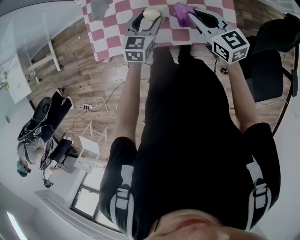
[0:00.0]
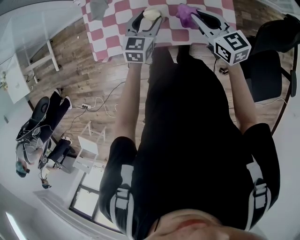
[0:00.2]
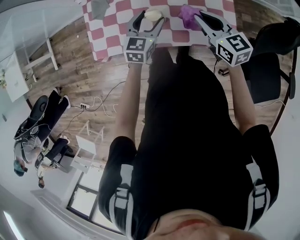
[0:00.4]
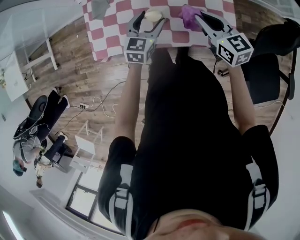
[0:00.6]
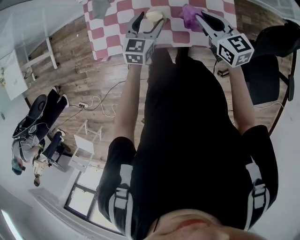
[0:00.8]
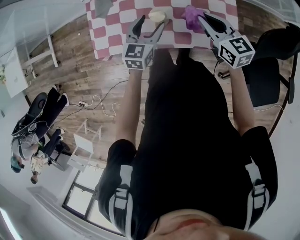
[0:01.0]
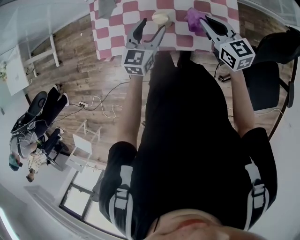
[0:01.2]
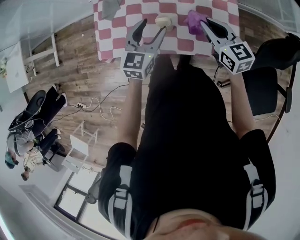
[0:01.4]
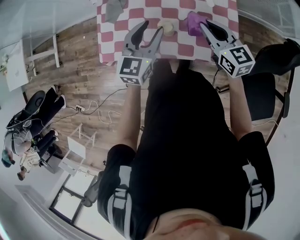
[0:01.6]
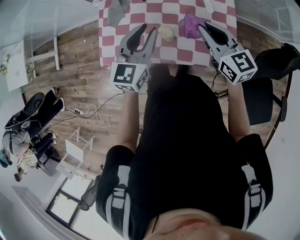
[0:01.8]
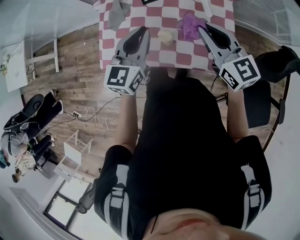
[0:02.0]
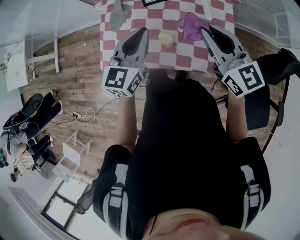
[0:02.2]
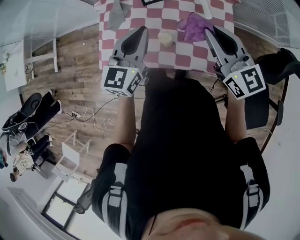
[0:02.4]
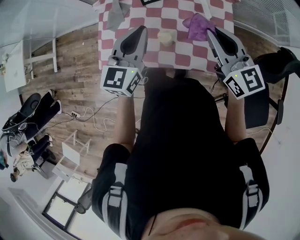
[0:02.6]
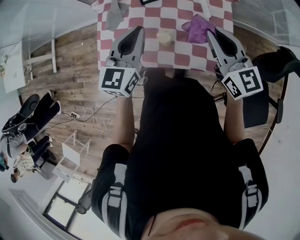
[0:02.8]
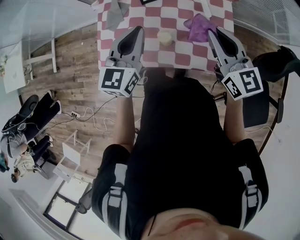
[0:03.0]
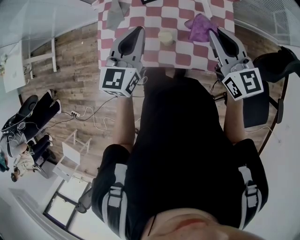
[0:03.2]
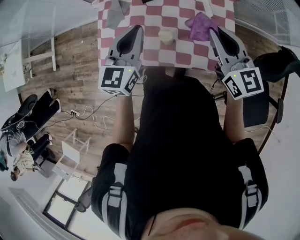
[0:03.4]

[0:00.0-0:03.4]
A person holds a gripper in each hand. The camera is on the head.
0.0 to 1.6 s: The left gripper heads upward, covering some 10 cm.
1.6 to 3.4 s: Both grippers travel together upward, roughly 10 cm. The left gripper closes.

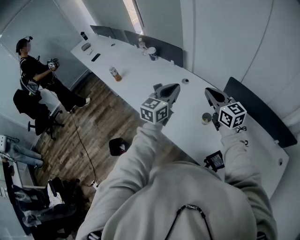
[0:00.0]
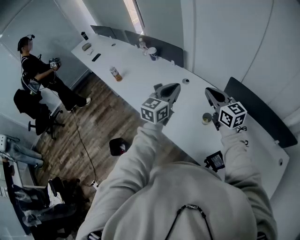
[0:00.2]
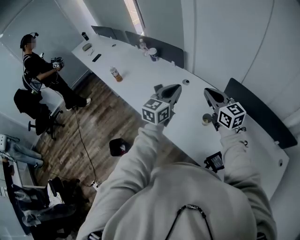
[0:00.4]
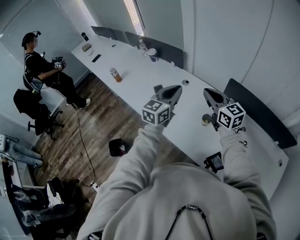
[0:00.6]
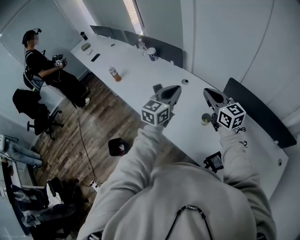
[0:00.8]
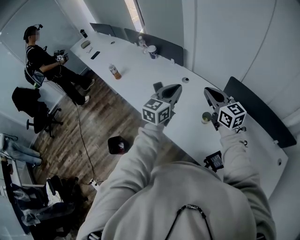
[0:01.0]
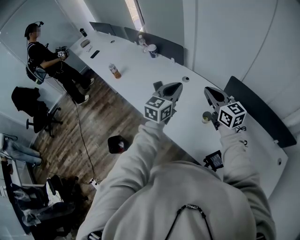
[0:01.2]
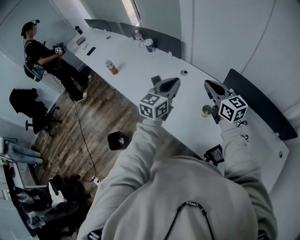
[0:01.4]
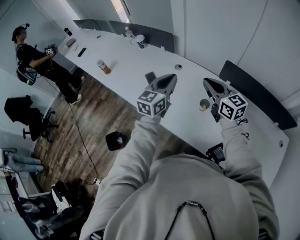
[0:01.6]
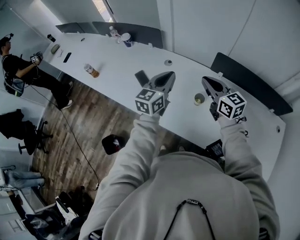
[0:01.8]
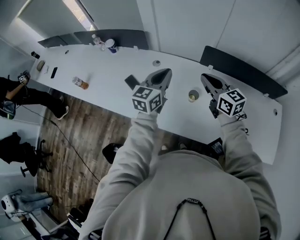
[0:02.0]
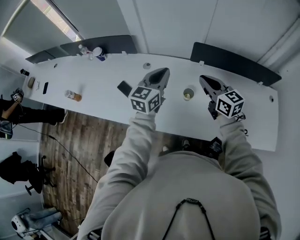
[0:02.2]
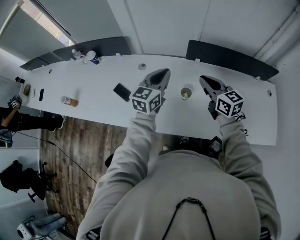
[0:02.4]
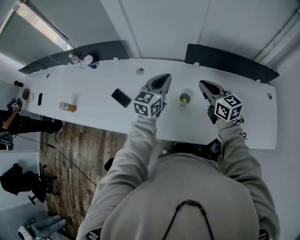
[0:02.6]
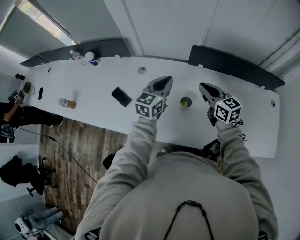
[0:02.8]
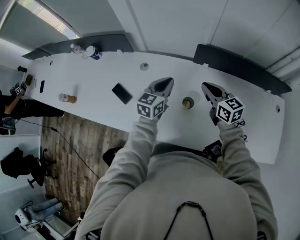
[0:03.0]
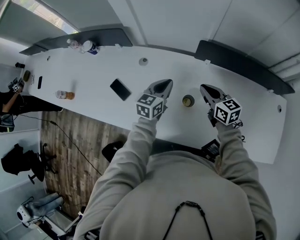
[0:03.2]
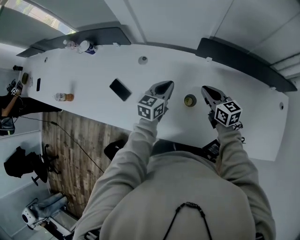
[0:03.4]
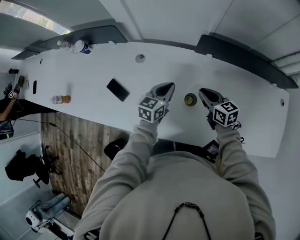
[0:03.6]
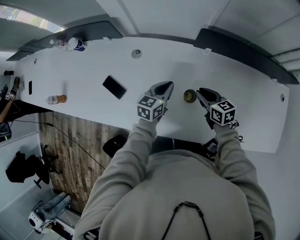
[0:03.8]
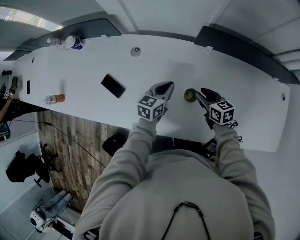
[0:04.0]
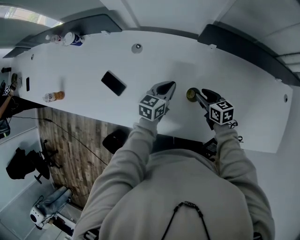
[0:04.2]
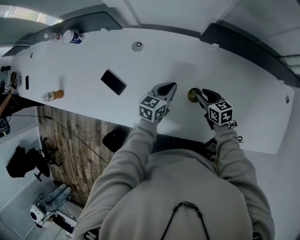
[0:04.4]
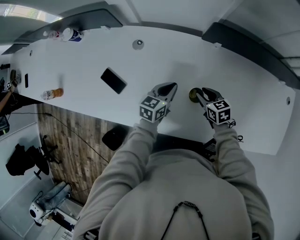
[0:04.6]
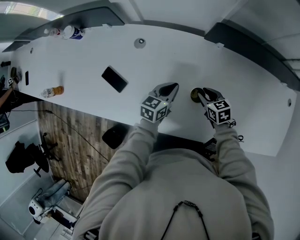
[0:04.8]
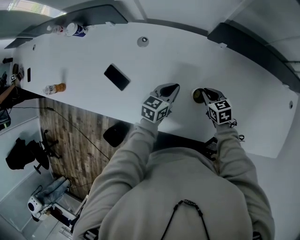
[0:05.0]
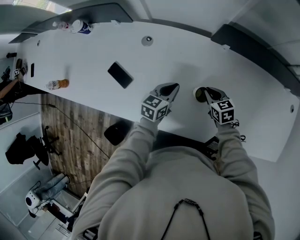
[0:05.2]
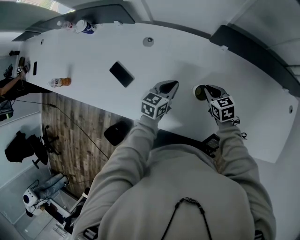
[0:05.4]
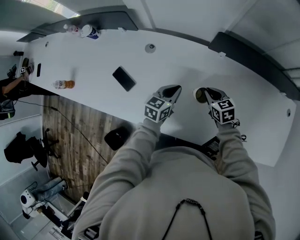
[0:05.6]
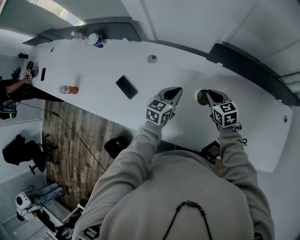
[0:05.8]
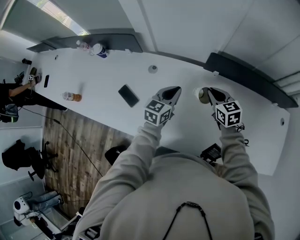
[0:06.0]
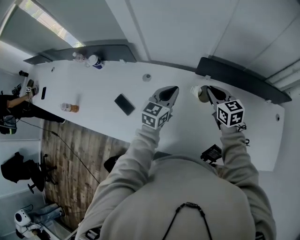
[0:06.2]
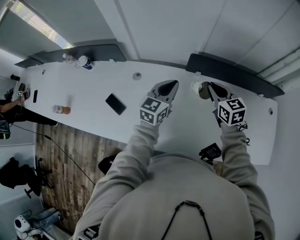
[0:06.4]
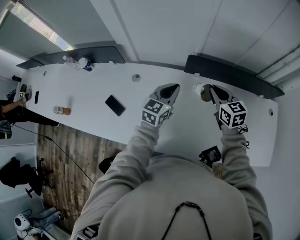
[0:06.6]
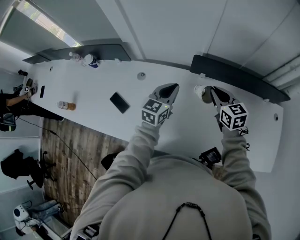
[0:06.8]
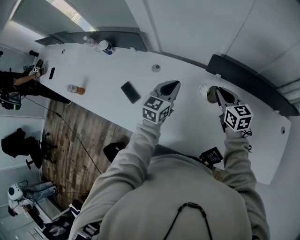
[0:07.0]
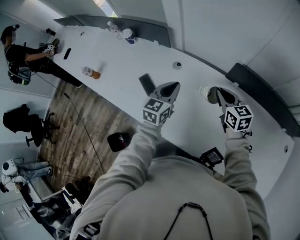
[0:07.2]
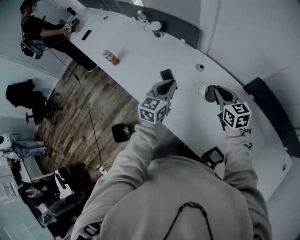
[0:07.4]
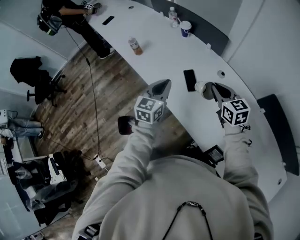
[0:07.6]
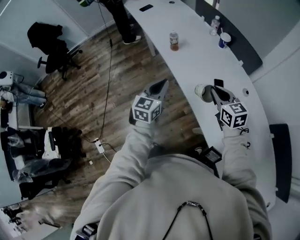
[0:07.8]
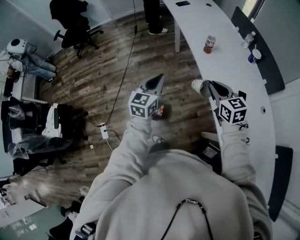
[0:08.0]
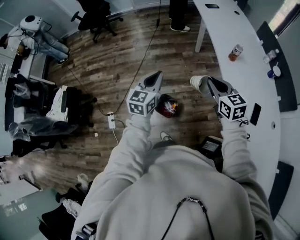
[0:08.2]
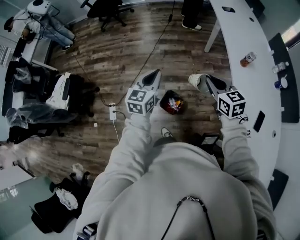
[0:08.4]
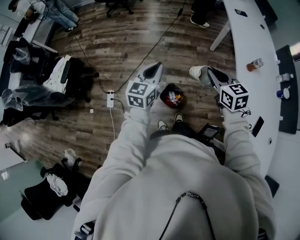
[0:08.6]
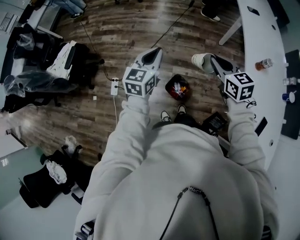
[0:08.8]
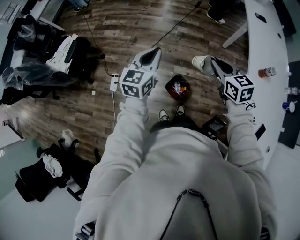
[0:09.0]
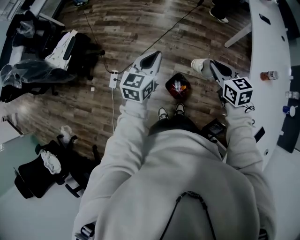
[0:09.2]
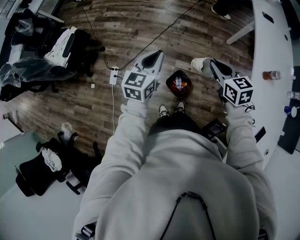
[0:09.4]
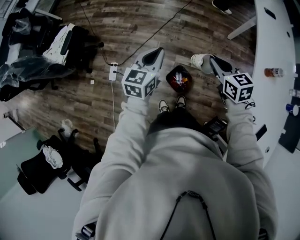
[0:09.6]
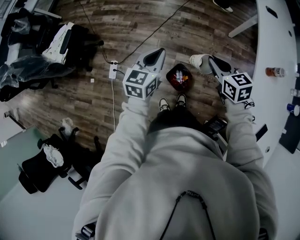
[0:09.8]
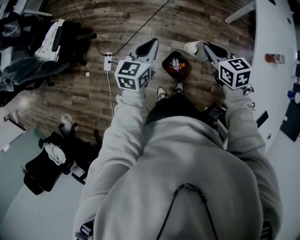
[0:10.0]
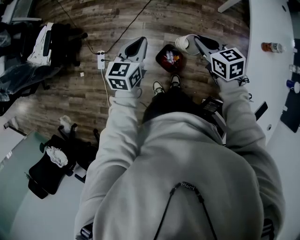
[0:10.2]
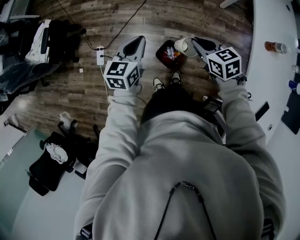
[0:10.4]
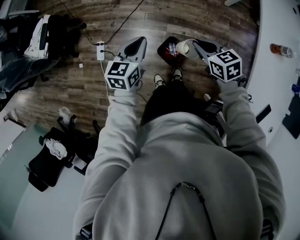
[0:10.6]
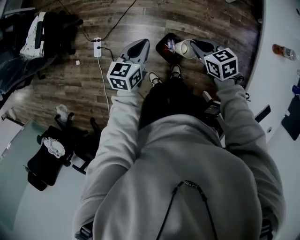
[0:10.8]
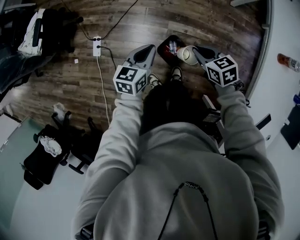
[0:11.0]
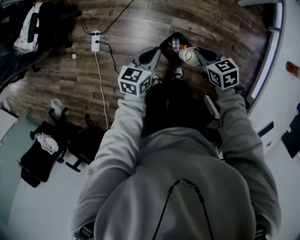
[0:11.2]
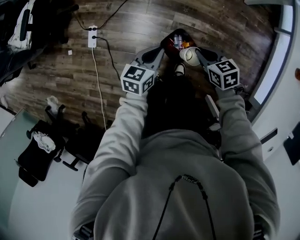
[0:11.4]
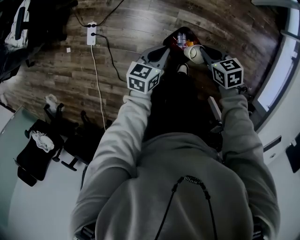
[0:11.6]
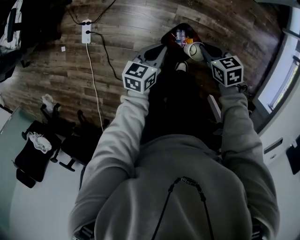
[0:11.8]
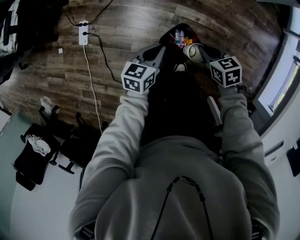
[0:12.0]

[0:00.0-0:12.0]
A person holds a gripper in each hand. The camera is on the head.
0.0 to 1.6 s: The grippers stay close to where they were, moving slightly.
1.6 to 3.0 s: The right gripper heads downward, to the right and forward, covering roughly 20 cm, and rotates some 20 degrees. The left gripper travels forward, downward and to the right by some 20 cm, and rotates approximately 20 degrees.
3.0 to 4.4 s: The two grippers go roughly 20 cm downward. The right gripper turns by some 30 degrees, and opens its fingers.
4.4 to 6.0 s: The left gripper travels upward by about 15 cm. The right gripper heads upward and forward, covering approximately 20 cm, turns by about 20 degrees, and closes its fingers.
6.0 to 7.6 s: The left gripper shifts by roughly 40 cm, and turns by approximately 40 degrees. The right gripper goes up and down, approximately 10 cm each way, reversing 2 times, and rotates approximately 30 degrees.
7.6 to 9.0 s: Both grippers are carried some 70 cm. The right gripper rotates roughly 60 degrees; the left gripper changes its angle by about 60 degrees.
9.0 to 10.4 s: The grippers both shift downward by about 15 cm.
10.4 to 12.0 s: Both grippers move downward, some 40 cm.

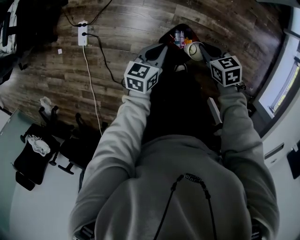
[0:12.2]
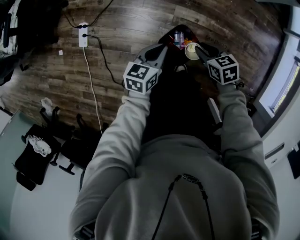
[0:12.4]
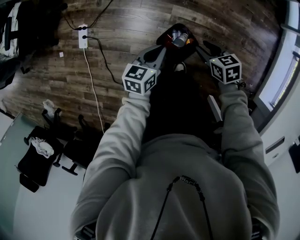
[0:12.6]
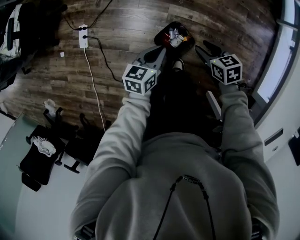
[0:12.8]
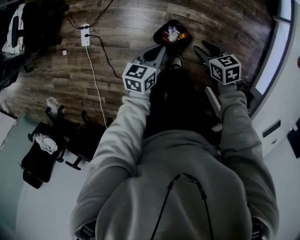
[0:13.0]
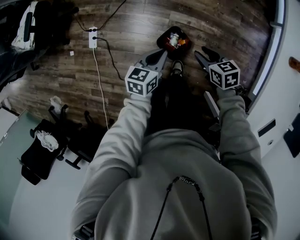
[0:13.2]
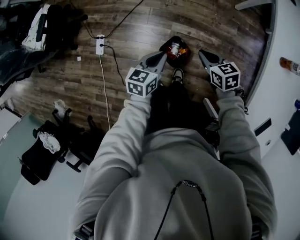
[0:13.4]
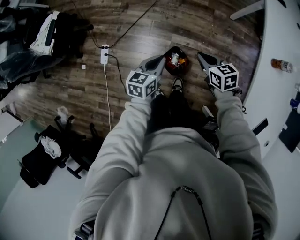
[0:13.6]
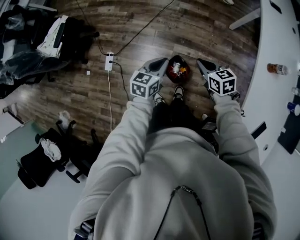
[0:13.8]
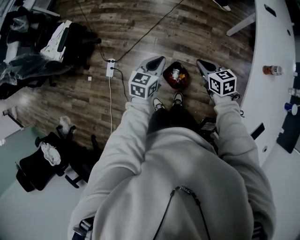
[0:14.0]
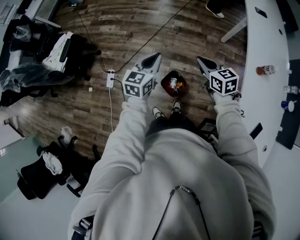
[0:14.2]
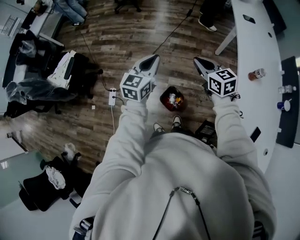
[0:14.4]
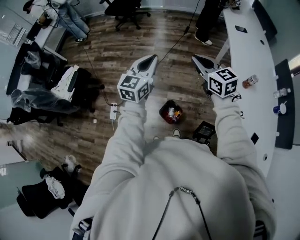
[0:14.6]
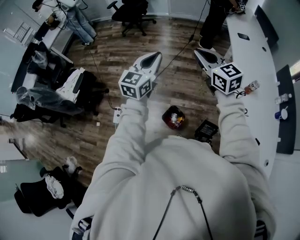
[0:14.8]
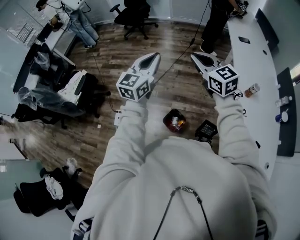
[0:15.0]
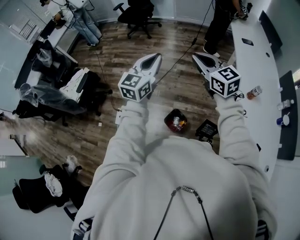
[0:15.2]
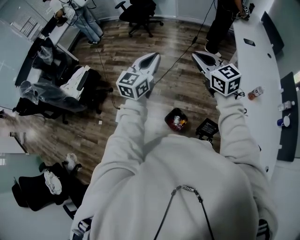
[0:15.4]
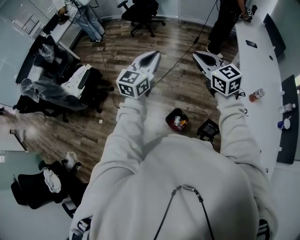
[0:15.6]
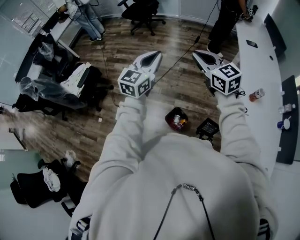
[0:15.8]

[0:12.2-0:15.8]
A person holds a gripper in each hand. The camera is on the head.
12.2 to 14.0 s: The grippers both shift upward by about 40 cm. The right gripper opens, then closes once more.
14.0 to 15.8 s: The grippers both shift upward by approximately 30 cm. The left gripper swivels approximately 30 degrees. The right gripper changes its angle by approximately 40 degrees.

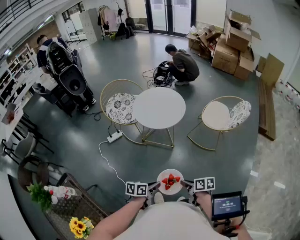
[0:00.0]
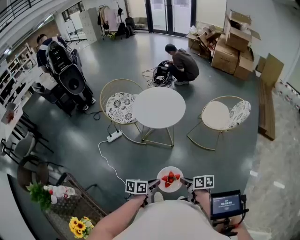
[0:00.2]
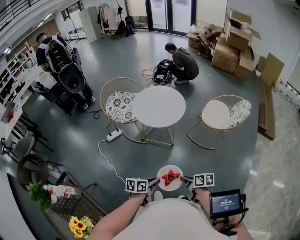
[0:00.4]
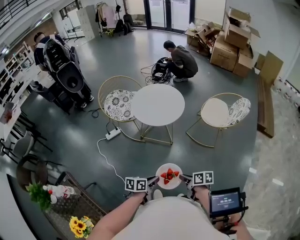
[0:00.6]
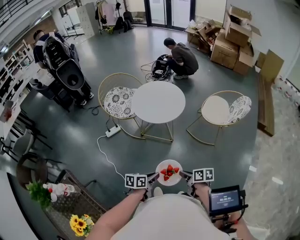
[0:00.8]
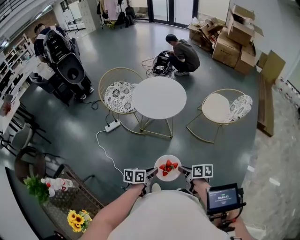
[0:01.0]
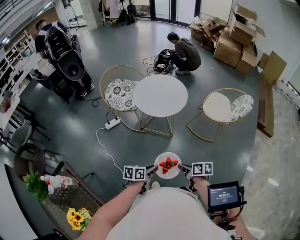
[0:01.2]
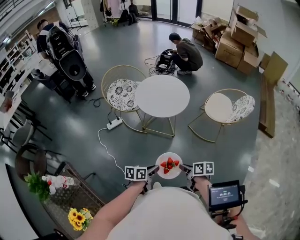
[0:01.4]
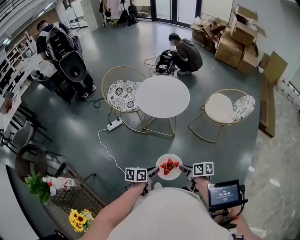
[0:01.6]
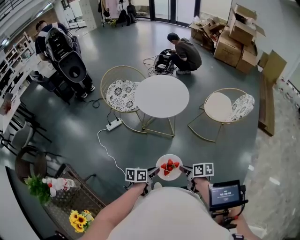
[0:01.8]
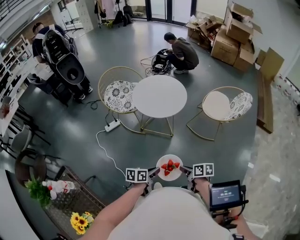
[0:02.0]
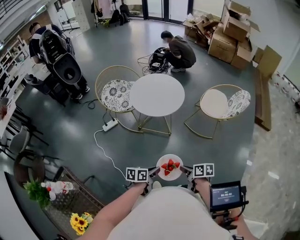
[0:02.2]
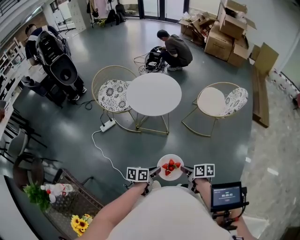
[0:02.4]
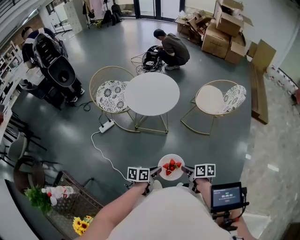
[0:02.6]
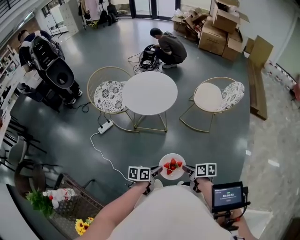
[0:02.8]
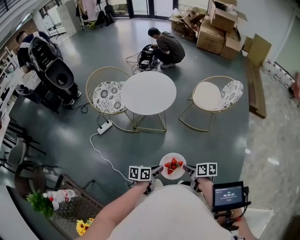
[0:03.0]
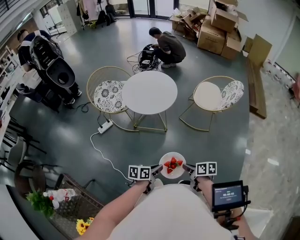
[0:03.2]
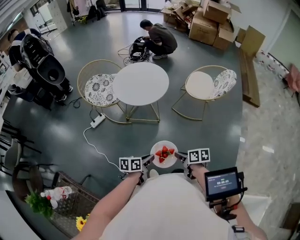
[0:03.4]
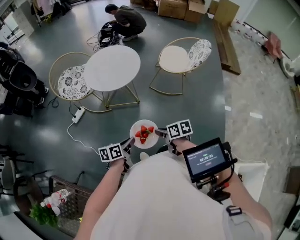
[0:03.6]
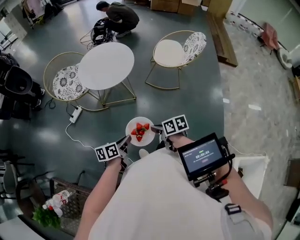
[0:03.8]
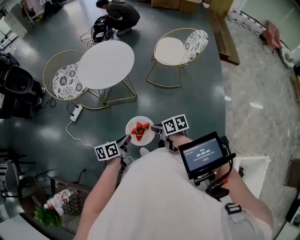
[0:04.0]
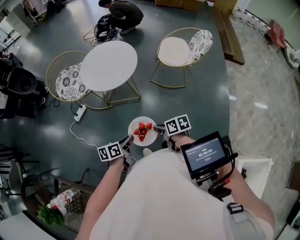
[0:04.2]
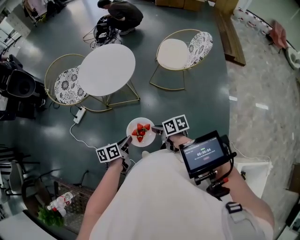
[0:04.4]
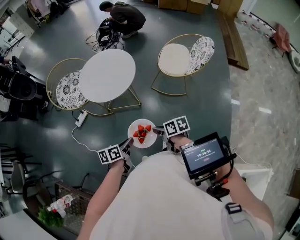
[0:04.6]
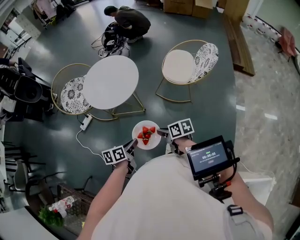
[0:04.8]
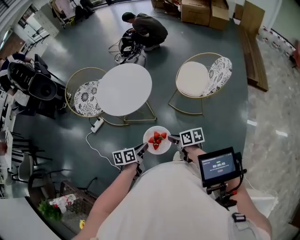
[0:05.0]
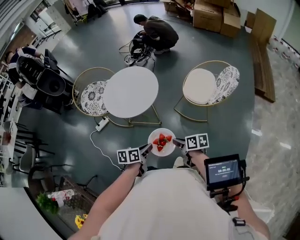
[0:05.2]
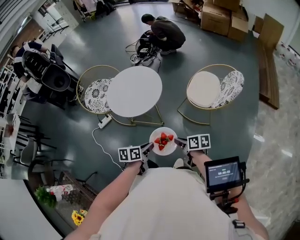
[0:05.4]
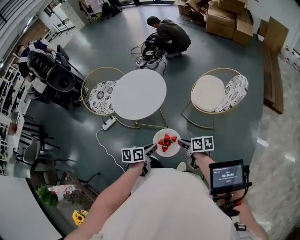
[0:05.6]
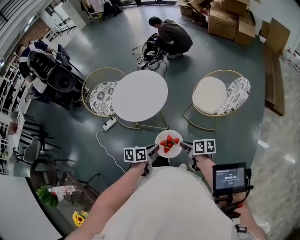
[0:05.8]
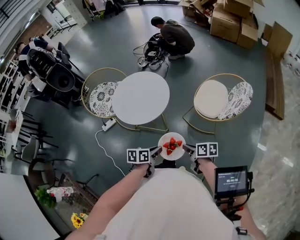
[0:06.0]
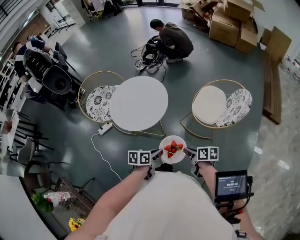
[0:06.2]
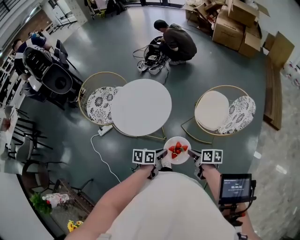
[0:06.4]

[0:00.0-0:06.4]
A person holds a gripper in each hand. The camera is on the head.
0.0 to 1.6 s: The left gripper shifts by some 5 cm, while the right gripper changes place by about 5 cm.
1.6 to 3.2 s: The grippers make only small movements.
3.2 to 4.8 s: The grippers both shift forward and to the right by some 15 cm.
4.8 to 6.4 s: The grippers both shift forward and to the right by roughly 20 cm.
